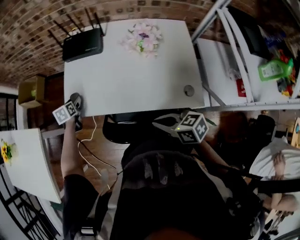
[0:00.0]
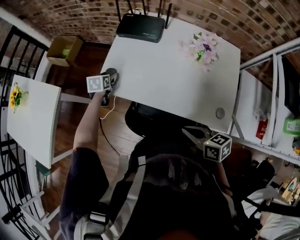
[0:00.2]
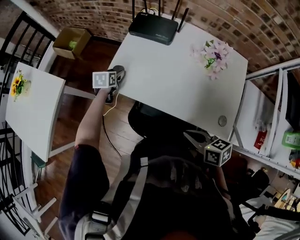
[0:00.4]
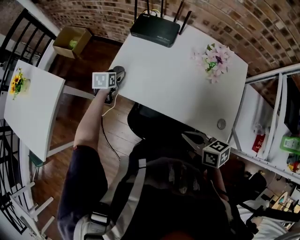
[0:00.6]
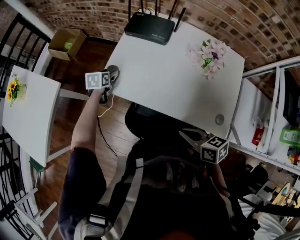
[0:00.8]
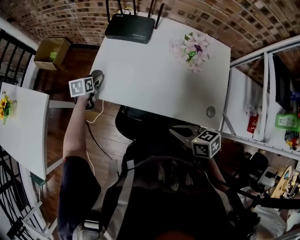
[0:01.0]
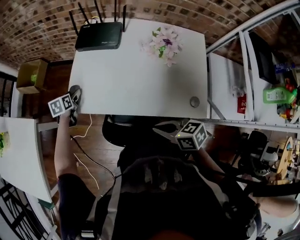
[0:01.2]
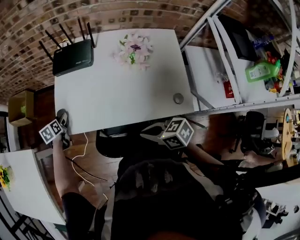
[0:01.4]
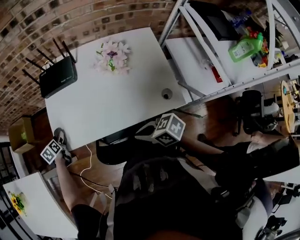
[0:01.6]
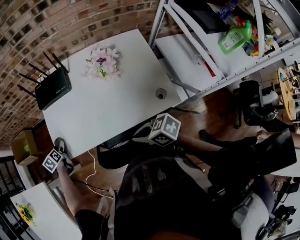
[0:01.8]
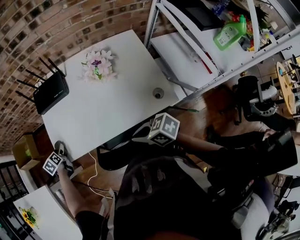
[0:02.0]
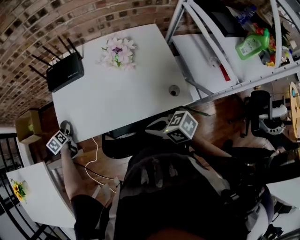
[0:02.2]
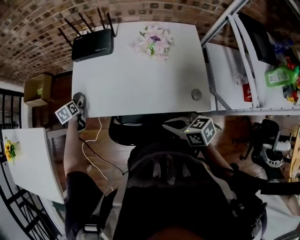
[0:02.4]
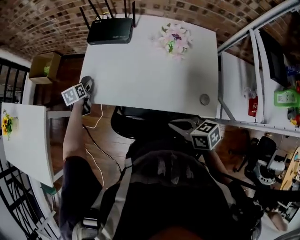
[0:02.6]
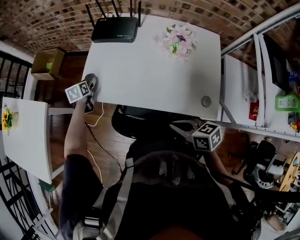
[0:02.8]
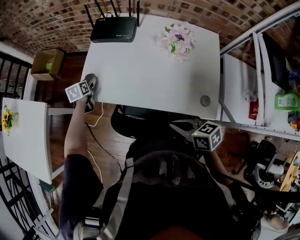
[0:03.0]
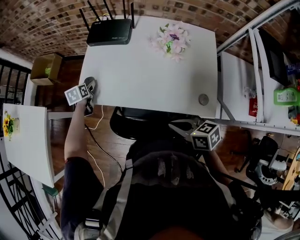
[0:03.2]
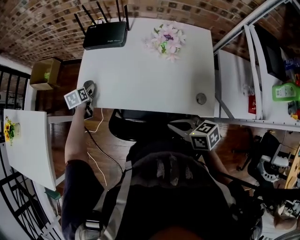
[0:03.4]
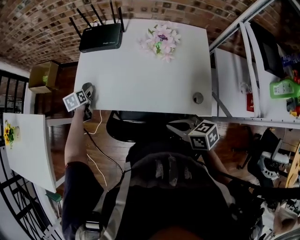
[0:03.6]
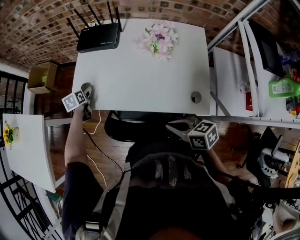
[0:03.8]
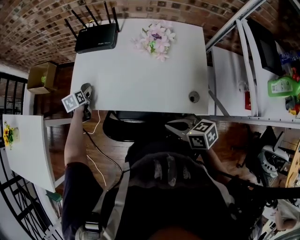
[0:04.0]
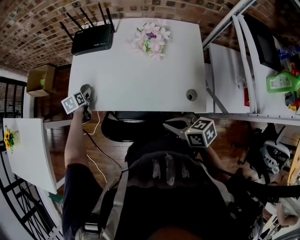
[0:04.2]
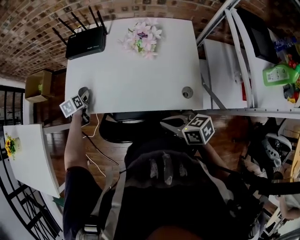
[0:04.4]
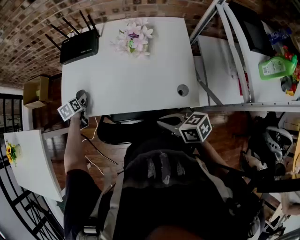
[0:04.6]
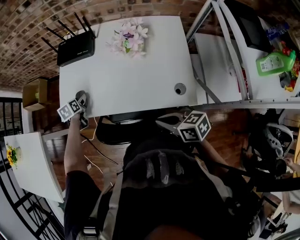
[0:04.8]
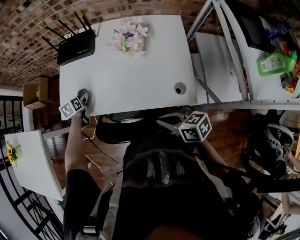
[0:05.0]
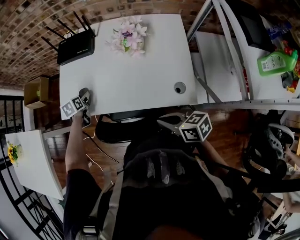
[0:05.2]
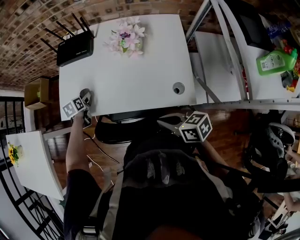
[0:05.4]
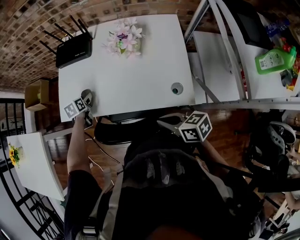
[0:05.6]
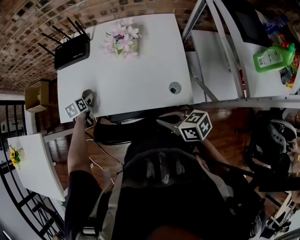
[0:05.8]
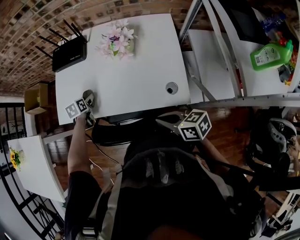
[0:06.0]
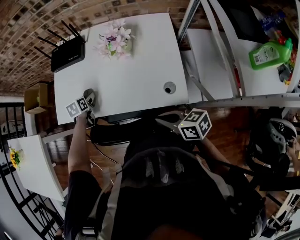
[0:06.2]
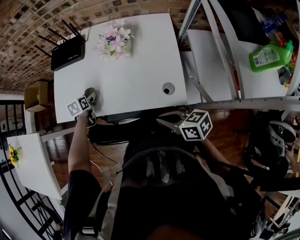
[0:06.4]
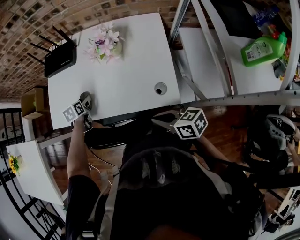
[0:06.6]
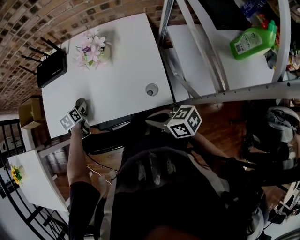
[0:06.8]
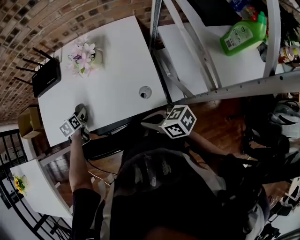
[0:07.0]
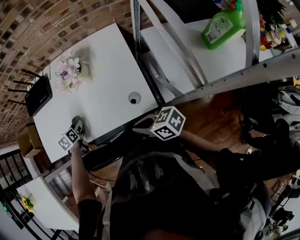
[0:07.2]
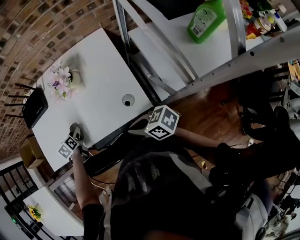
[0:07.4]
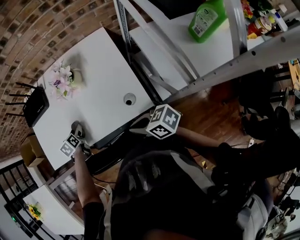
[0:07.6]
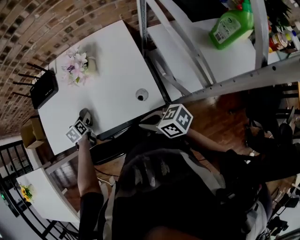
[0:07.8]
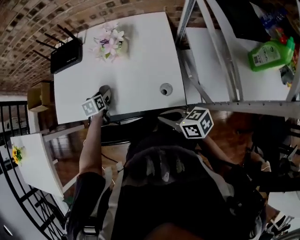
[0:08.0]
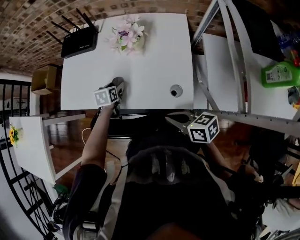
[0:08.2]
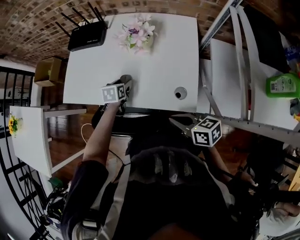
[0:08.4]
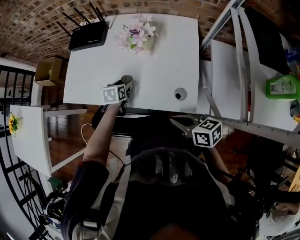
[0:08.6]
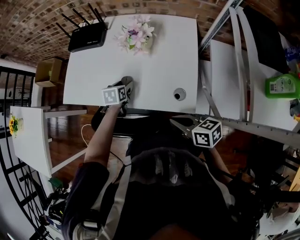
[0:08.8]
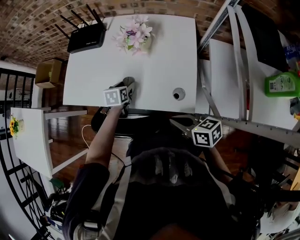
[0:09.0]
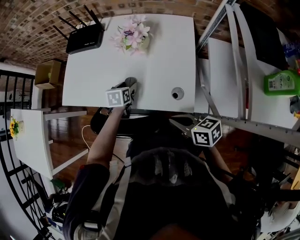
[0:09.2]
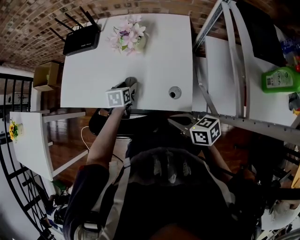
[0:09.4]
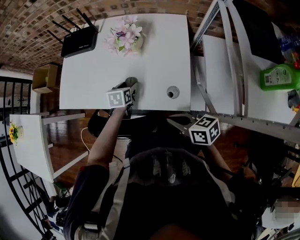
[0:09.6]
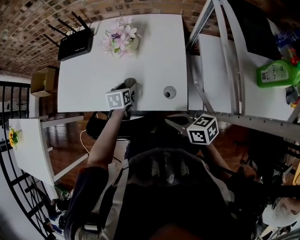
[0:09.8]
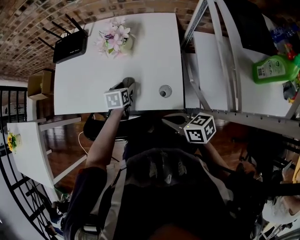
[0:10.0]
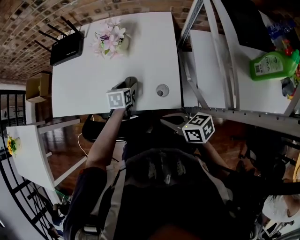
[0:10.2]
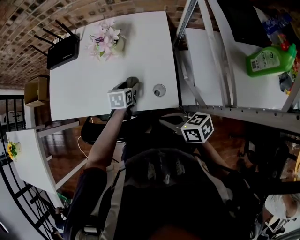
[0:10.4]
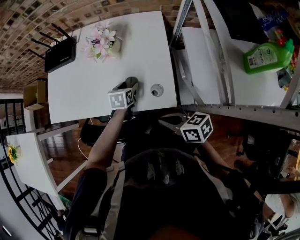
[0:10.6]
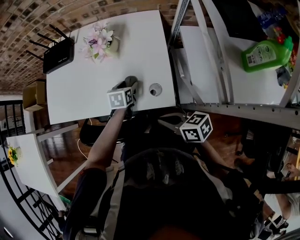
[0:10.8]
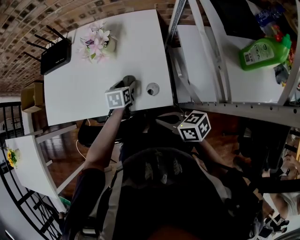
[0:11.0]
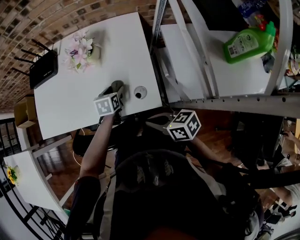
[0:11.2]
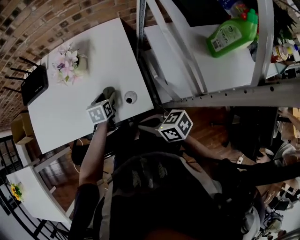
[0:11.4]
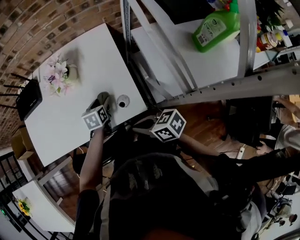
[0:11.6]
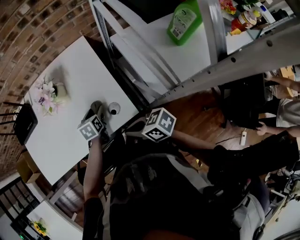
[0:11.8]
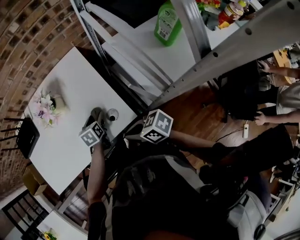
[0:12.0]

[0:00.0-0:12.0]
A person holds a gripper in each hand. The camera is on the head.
0:00.0 to 0:03.0: The grippers stay close to where they were, moving slightly.
0:03.0 to 0:04.4: The left gripper moves to the right, approximately 5 cm; the right gripper moves about 5 cm.
0:04.4 to 0:06.0: The right gripper heads to the right, covering some 5 cm; the left gripper is displaced to the right and backward by some 10 cm.
0:06.0 to 0:07.6: The right gripper changes place by roughly 5 cm. Meanwhile the left gripper travels to the right and backward by roughly 10 cm.
0:07.6 to 0:09.0: The left gripper is displaced to the right by approximately 5 cm.
0:09.0 to 0:10.4: The left gripper heads to the right, covering some 10 cm.
0:10.4 to 0:12.0: The left gripper goes about 5 cm to the right.

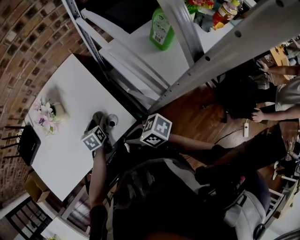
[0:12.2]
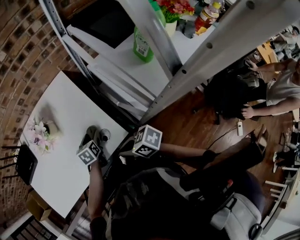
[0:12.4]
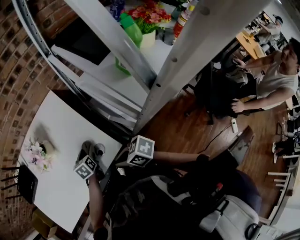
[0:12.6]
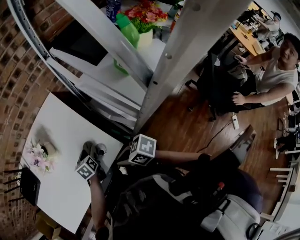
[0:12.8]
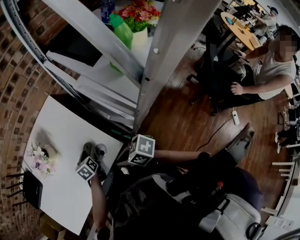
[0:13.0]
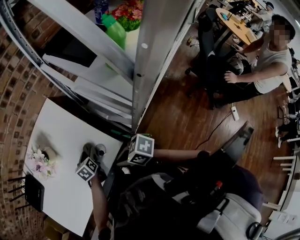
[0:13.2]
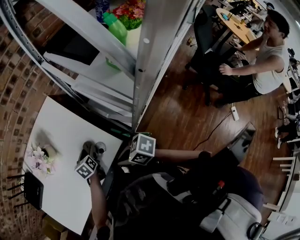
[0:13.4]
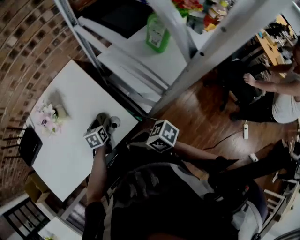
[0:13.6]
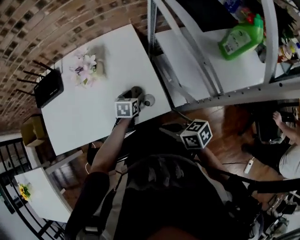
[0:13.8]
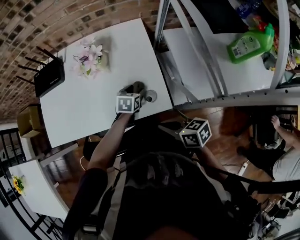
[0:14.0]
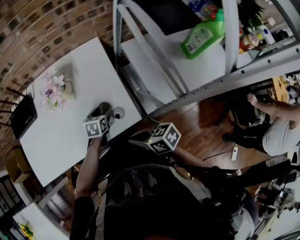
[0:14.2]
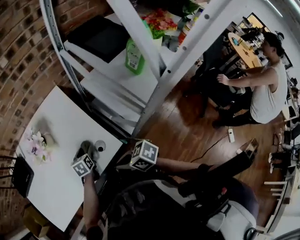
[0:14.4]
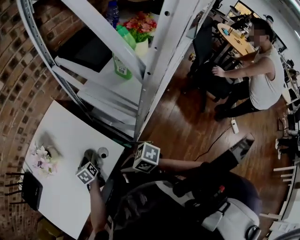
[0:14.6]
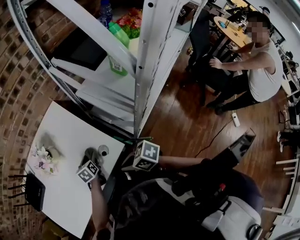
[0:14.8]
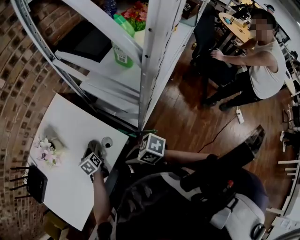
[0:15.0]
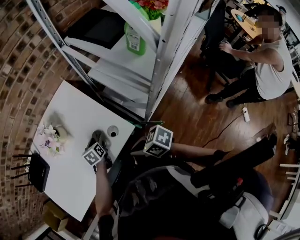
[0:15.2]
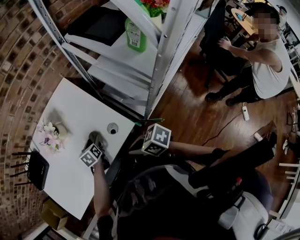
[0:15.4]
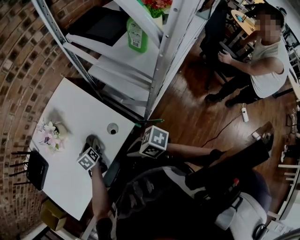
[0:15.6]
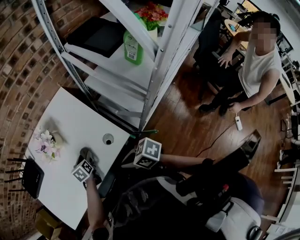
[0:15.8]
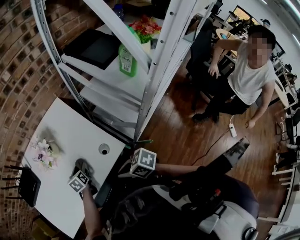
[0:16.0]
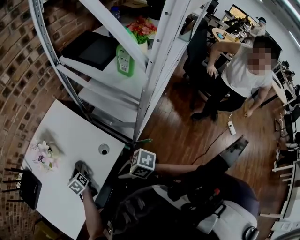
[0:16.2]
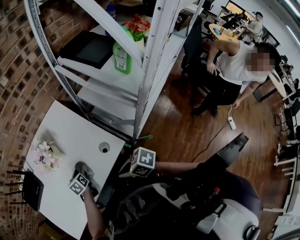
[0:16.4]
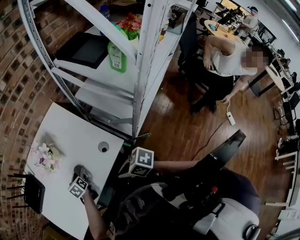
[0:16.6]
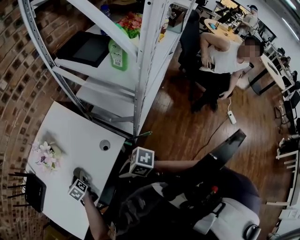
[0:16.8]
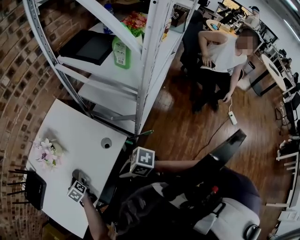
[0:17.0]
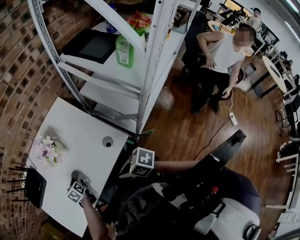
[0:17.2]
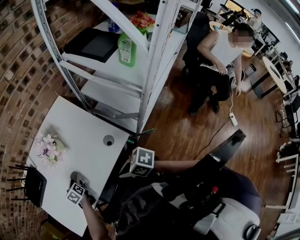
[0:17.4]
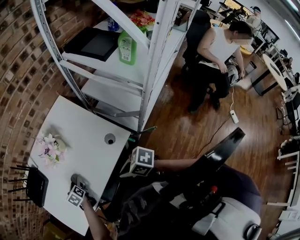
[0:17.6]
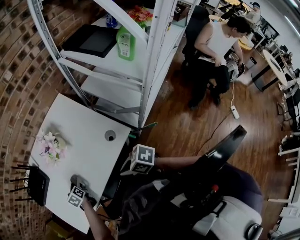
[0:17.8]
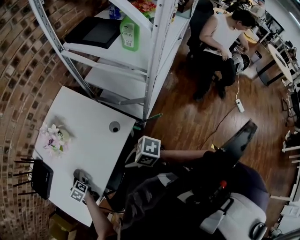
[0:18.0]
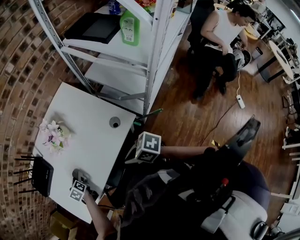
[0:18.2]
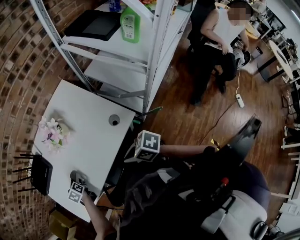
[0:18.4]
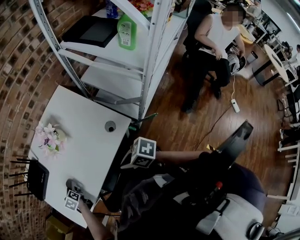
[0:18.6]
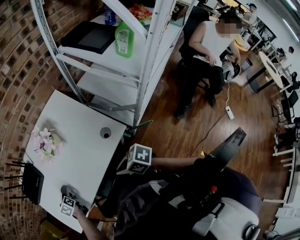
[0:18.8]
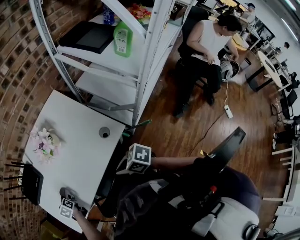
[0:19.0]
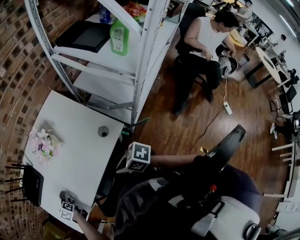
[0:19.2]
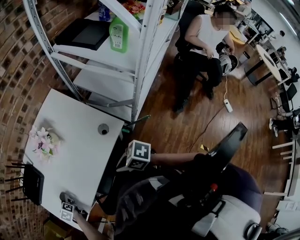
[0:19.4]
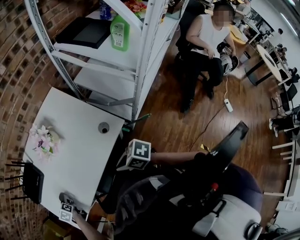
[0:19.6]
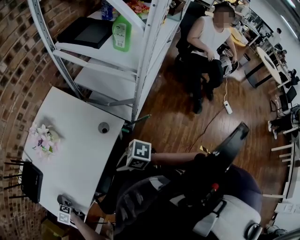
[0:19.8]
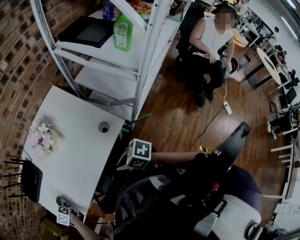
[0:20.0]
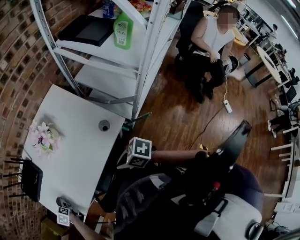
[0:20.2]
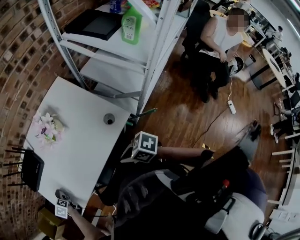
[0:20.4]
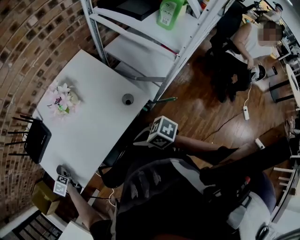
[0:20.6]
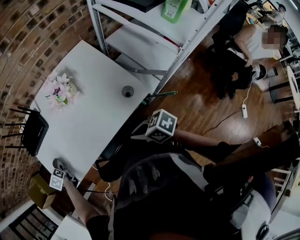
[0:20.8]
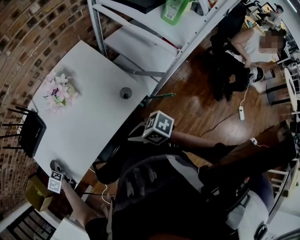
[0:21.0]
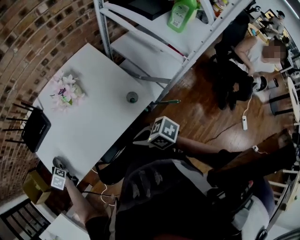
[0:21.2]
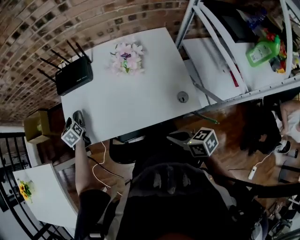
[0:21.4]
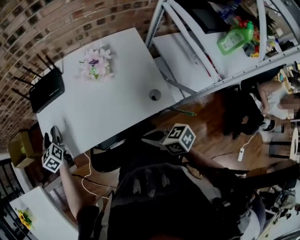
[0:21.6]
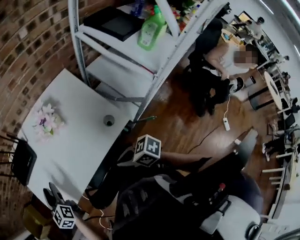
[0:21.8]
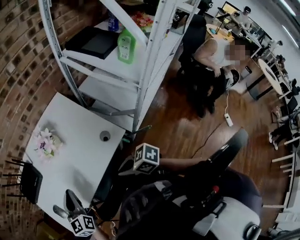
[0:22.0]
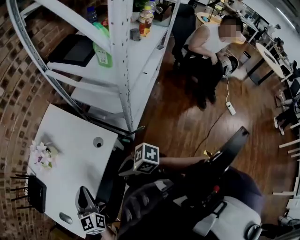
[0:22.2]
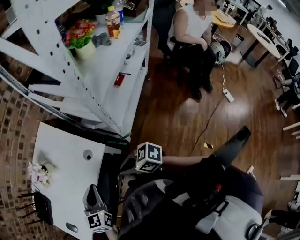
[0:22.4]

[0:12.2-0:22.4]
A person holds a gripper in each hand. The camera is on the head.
0:12.2 to 0:13.6: The grippers make only small movements.
0:15.2 to 0:16.6: The right gripper is displaced to the left by about 5 cm, while the left gripper heads to the left, covering approximately 15 cm.
0:16.6 to 0:18.0: The left gripper travels to the left by approximately 15 cm; the right gripper travels to the left by some 5 cm.
0:18.0 to 0:19.4: The left gripper shifts approximately 15 cm to the left.
0:19.4 to 0:21.0: The left gripper heads to the left, covering roughly 10 cm.
0:21.0 to 0:22.4: The left gripper moves roughly 60 cm, swivels some 70 degrees, and closes up; the right gripper ends up some 20 cm from where it was, and turns by about 20 degrees.

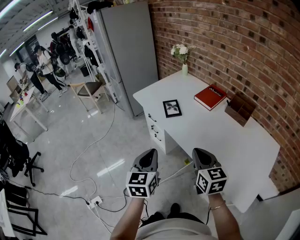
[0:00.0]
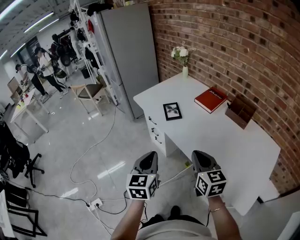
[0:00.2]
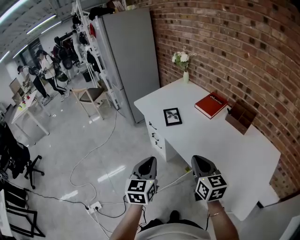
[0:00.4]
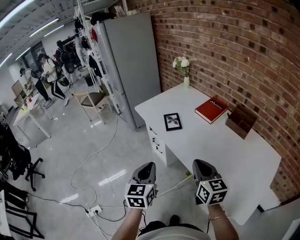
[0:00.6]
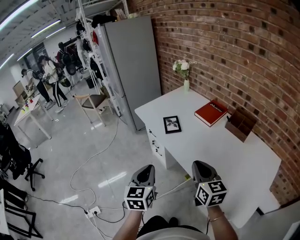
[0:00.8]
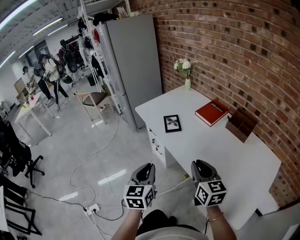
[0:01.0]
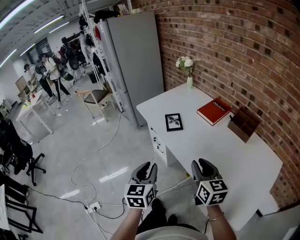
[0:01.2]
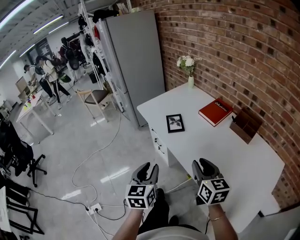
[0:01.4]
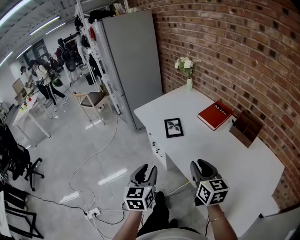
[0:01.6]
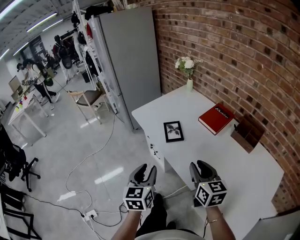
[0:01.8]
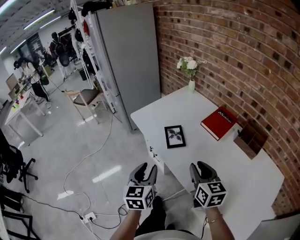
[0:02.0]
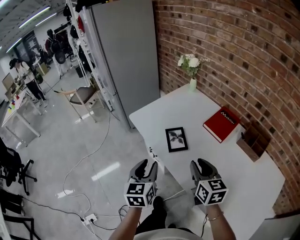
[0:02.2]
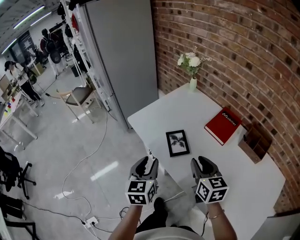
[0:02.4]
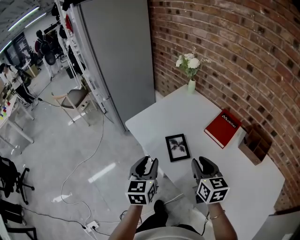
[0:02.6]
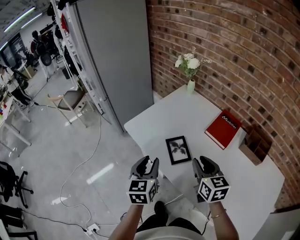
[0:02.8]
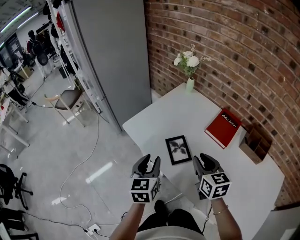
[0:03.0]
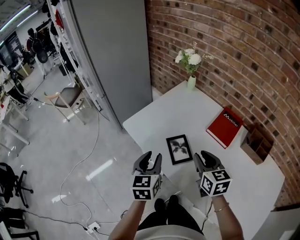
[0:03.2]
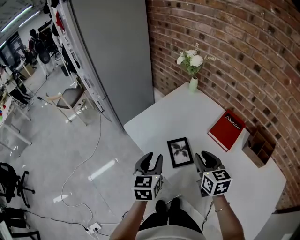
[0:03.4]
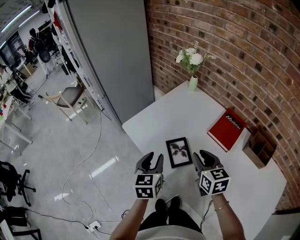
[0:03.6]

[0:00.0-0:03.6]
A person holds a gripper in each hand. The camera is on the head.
0:00.0 to 0:01.8: The grippers both shift forward by some 10 cm. The left gripper opens. The right gripper opens up.
0:01.8 to 0:03.6: The grippers both shift forward by some 25 cm.
